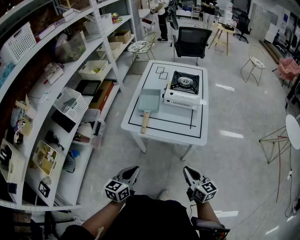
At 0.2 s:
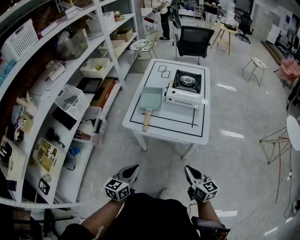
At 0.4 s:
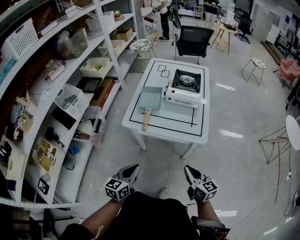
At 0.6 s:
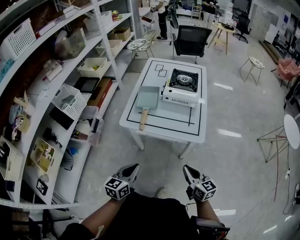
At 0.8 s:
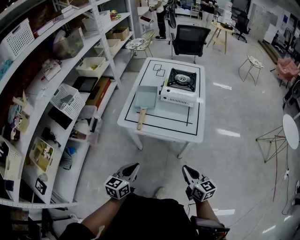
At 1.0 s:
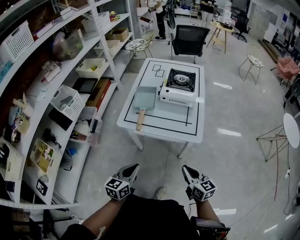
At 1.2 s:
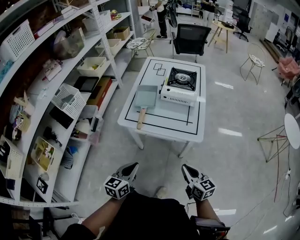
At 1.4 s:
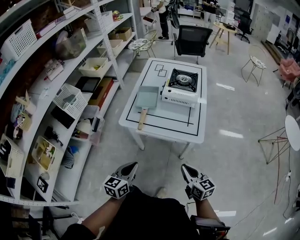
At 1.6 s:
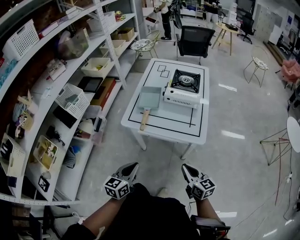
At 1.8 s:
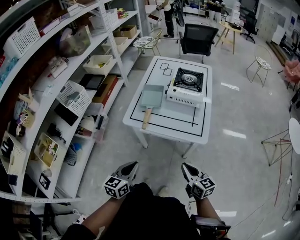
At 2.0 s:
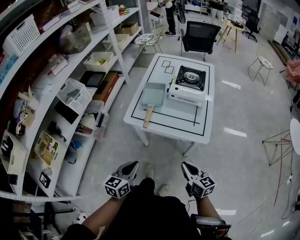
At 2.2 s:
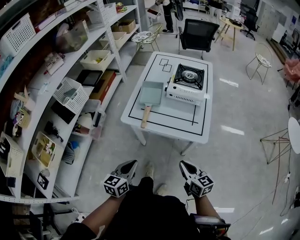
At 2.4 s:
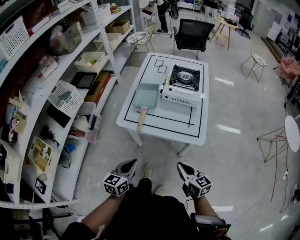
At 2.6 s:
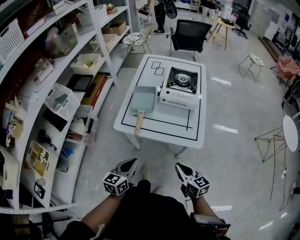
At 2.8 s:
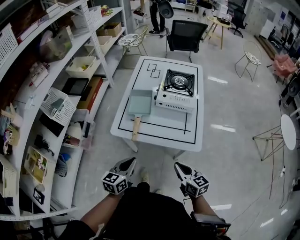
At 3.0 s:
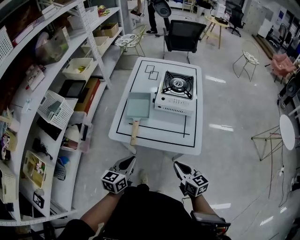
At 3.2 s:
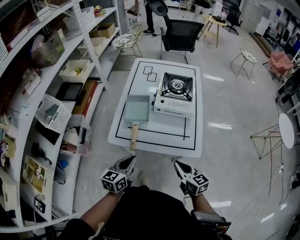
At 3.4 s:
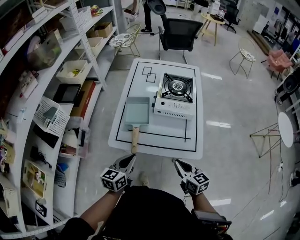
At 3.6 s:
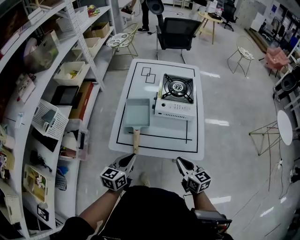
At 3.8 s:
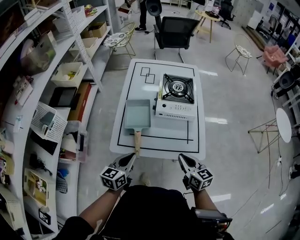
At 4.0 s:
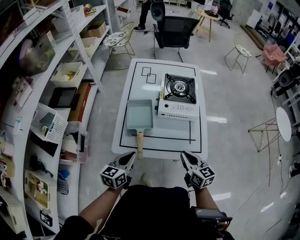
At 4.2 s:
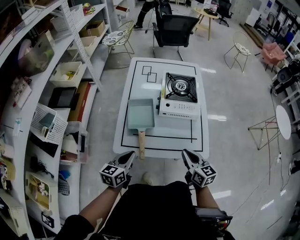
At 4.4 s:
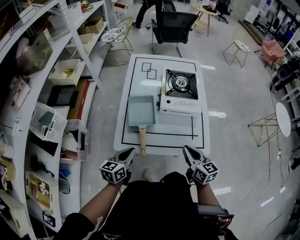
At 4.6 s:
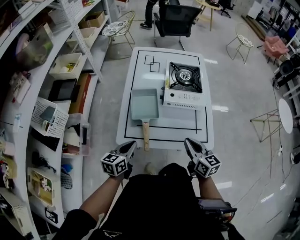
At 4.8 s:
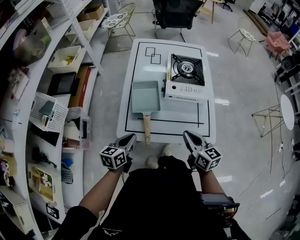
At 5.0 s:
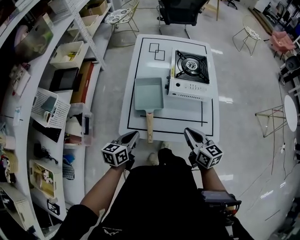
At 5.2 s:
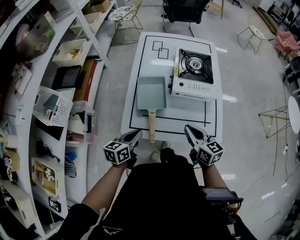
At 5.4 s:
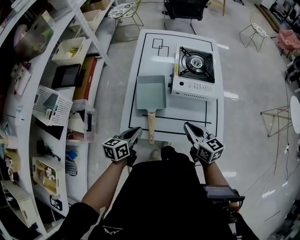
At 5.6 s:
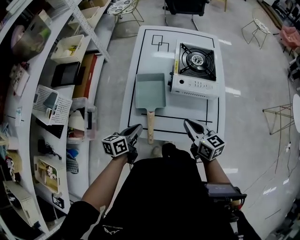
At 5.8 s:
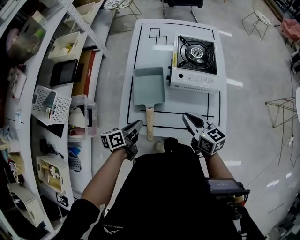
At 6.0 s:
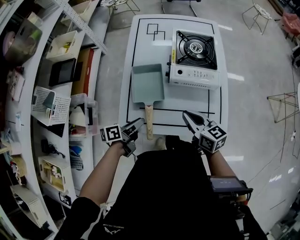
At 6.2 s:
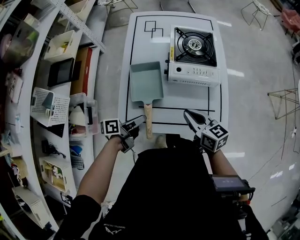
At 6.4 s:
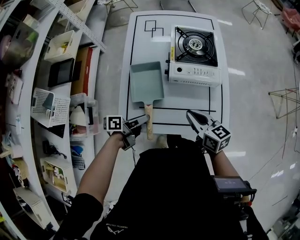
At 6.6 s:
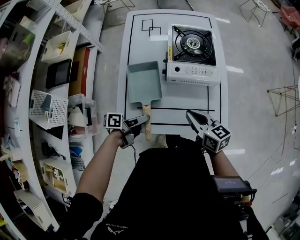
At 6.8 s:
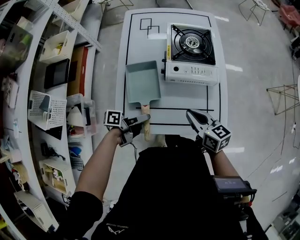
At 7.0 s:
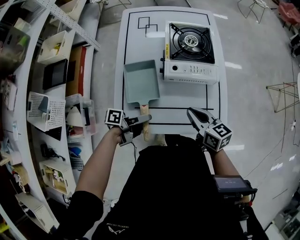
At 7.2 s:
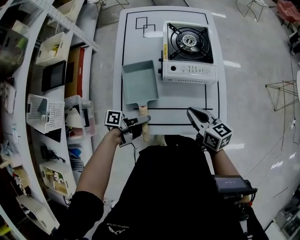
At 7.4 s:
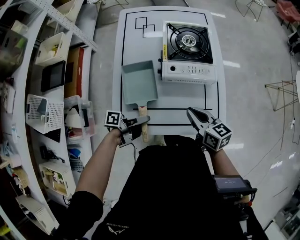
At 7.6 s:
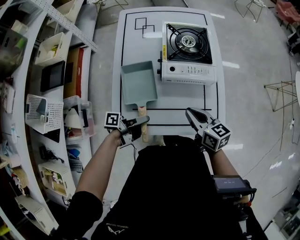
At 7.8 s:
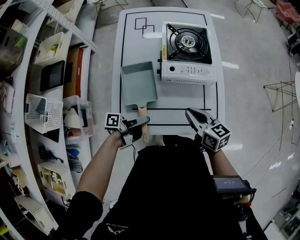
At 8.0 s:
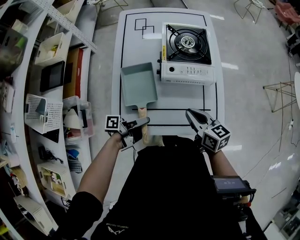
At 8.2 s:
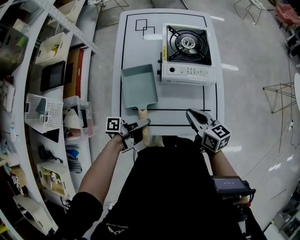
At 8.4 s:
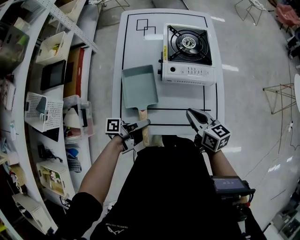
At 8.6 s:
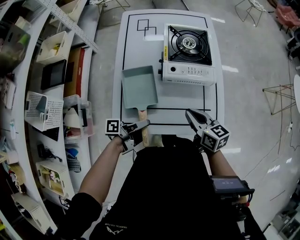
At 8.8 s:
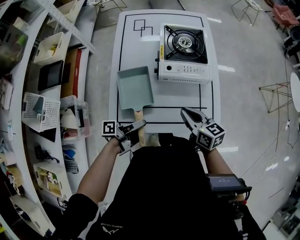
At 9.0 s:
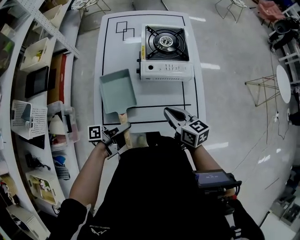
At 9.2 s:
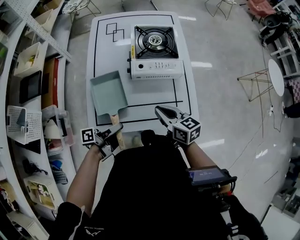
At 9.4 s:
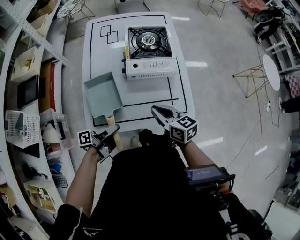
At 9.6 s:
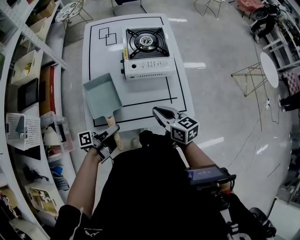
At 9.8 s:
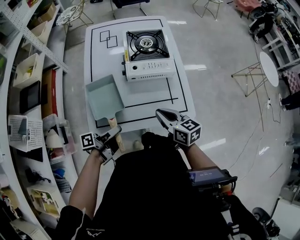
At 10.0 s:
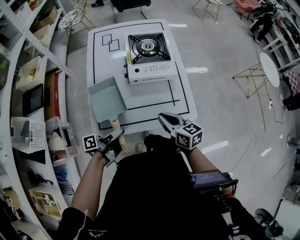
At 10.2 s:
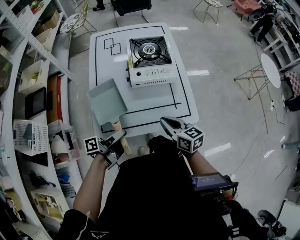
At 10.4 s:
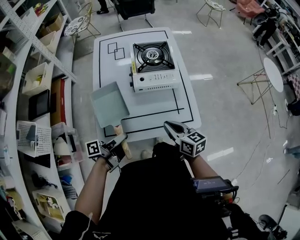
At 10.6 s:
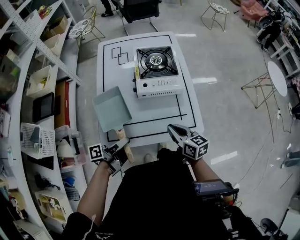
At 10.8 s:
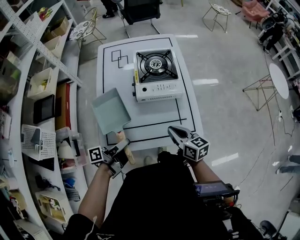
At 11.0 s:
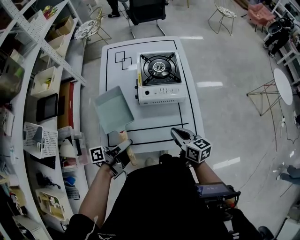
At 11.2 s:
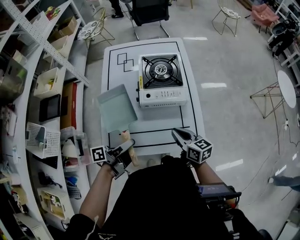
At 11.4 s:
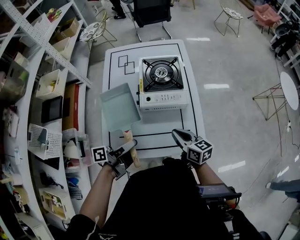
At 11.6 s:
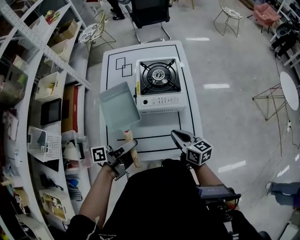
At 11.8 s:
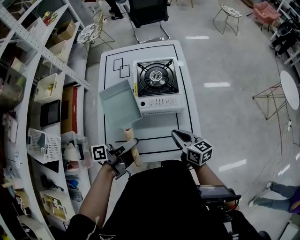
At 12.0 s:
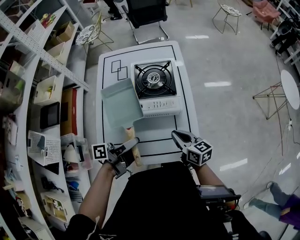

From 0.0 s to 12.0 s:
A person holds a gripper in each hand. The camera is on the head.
From 0.0 s to 1.6 s: The grippers move only a little.
From 1.6 s to 3.0 s: Both grippers travel together forward, some 10 cm.
From 3.0 s to 4.4 s: The left gripper goes some 15 cm forward and to the left. The right gripper heads forward, covering roughly 10 cm.
From 4.4 s to 6.0 s: The right gripper moves forward, roughly 10 cm. Meanwhile the left gripper heads downward and forward, covering some 10 cm, turns by some 40 degrees, and opens up.
From 6.0 s to 7.6 s: The left gripper is displaced to the right by some 5 cm, and swivels about 30 degrees.
From 7.6 s to 9.0 s: There are only small adjustments of the grippers.
From 9.0 s to 10.4 s: The right gripper moves about 5 cm.
From 10.4 s to 12.0 s: The left gripper moves forward, to the right and upward, some 15 cm. Meanwhile the right gripper shifts roughly 15 cm forward and to the right.

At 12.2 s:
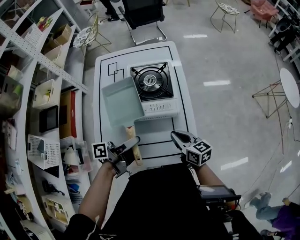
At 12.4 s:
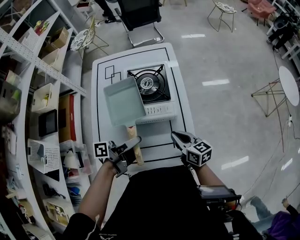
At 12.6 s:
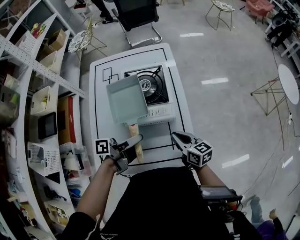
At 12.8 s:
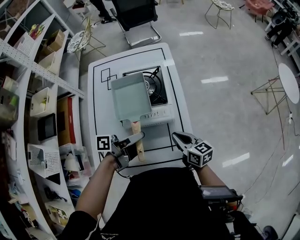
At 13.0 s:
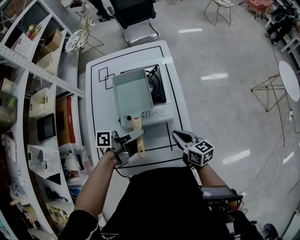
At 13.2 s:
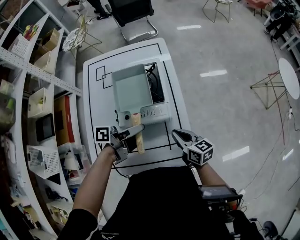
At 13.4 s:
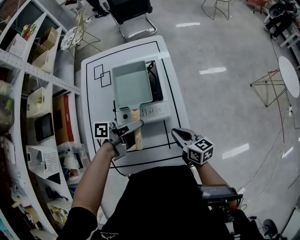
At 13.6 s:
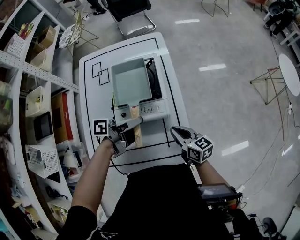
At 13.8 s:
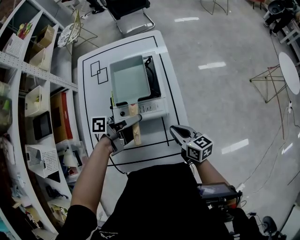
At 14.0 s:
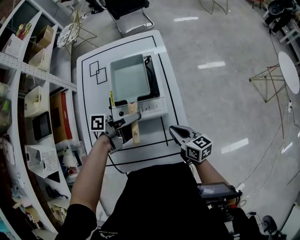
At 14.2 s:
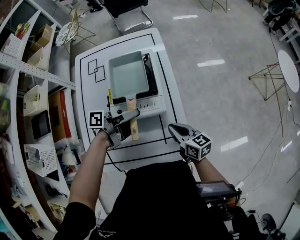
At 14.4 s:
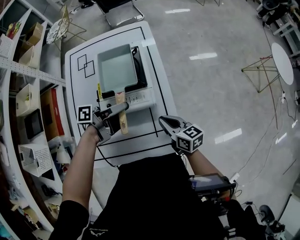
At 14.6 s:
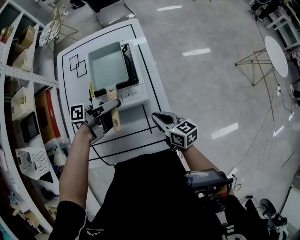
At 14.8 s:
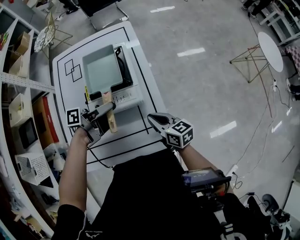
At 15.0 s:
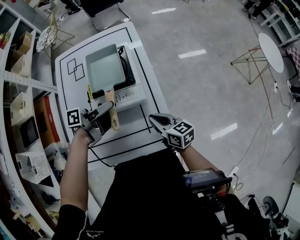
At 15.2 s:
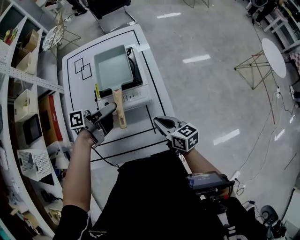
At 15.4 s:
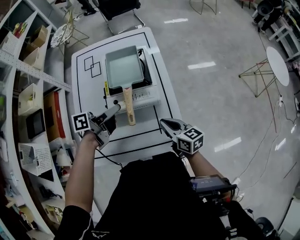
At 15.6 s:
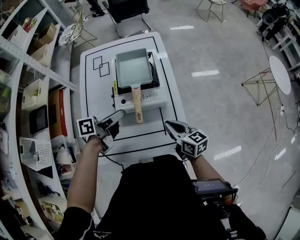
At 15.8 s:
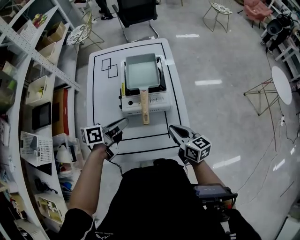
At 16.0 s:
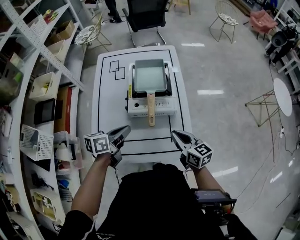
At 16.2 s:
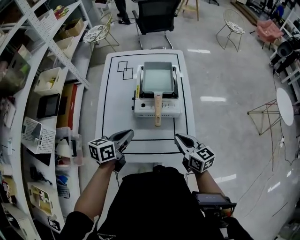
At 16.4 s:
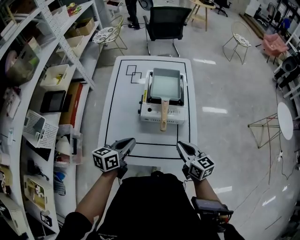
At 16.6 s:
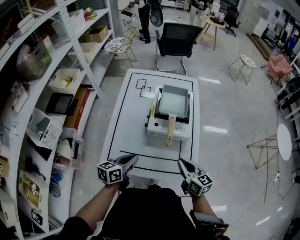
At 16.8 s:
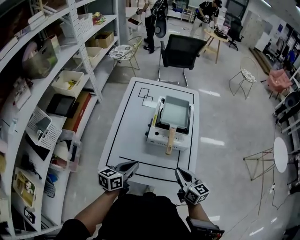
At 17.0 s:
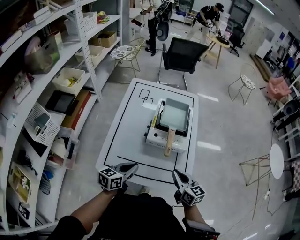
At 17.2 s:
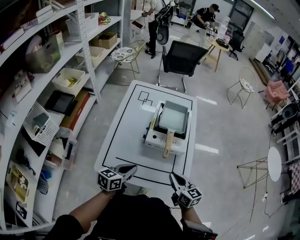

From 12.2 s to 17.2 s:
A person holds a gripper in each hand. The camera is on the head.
From 12.2 s to 13.8 s: The left gripper is displaced forward and to the right by about 15 cm. The right gripper moves about 5 cm.
From 13.8 s to 15.6 s: The left gripper travels to the left and backward by approximately 10 cm, while the right gripper changes place by roughly 5 cm.
From 15.6 s to 17.2 s: The right gripper goes some 5 cm backward, while the left gripper goes approximately 15 cm backward and to the left, rotates some 40 degrees, and closes up.

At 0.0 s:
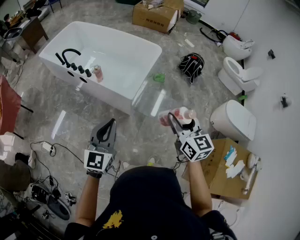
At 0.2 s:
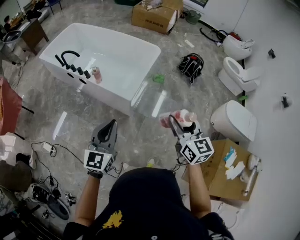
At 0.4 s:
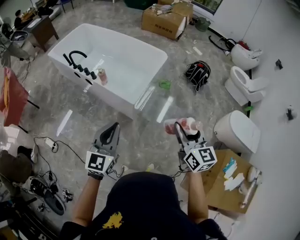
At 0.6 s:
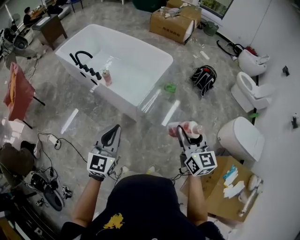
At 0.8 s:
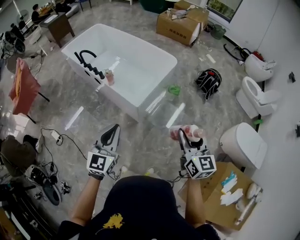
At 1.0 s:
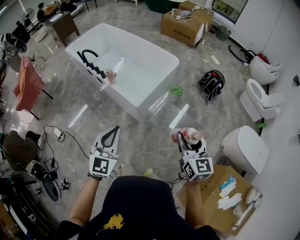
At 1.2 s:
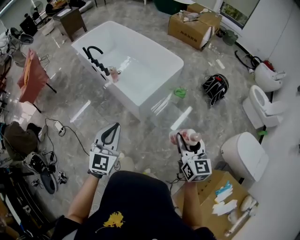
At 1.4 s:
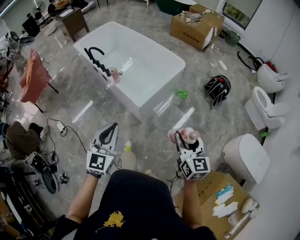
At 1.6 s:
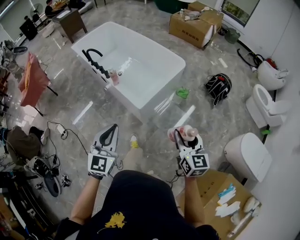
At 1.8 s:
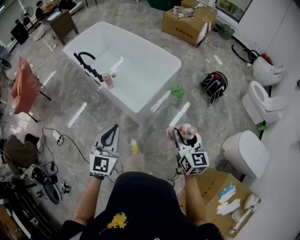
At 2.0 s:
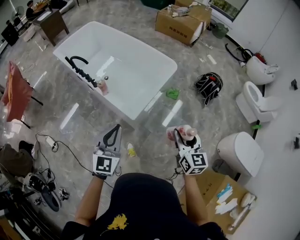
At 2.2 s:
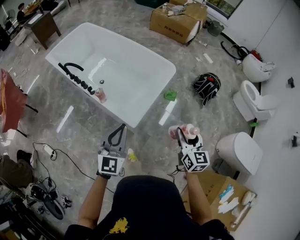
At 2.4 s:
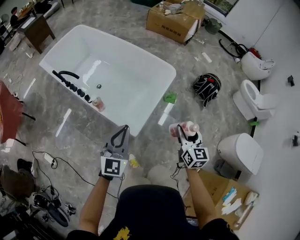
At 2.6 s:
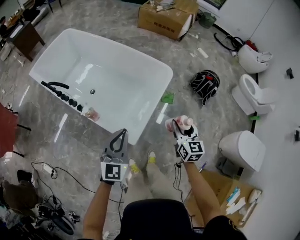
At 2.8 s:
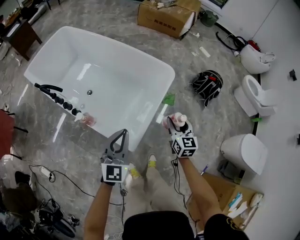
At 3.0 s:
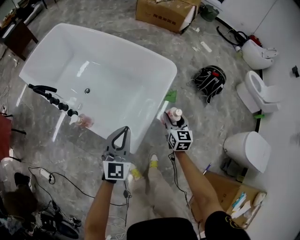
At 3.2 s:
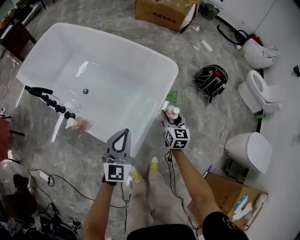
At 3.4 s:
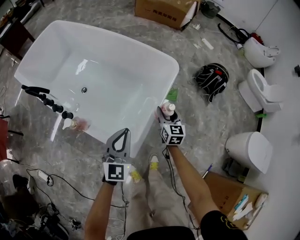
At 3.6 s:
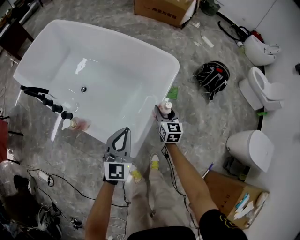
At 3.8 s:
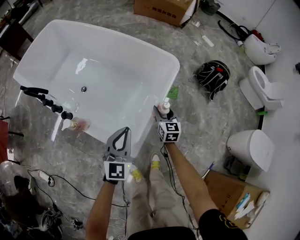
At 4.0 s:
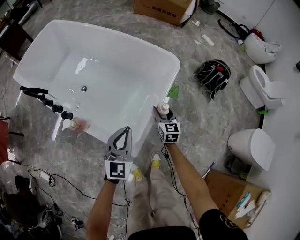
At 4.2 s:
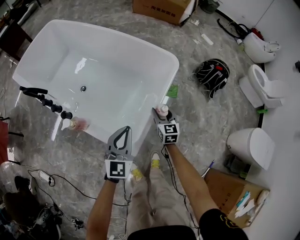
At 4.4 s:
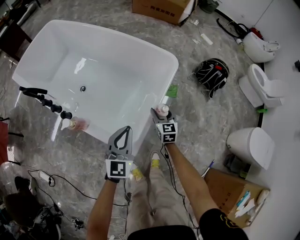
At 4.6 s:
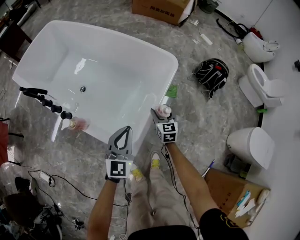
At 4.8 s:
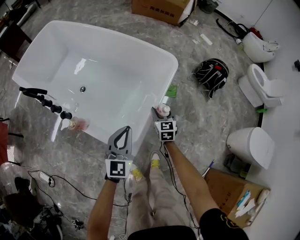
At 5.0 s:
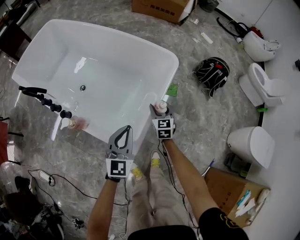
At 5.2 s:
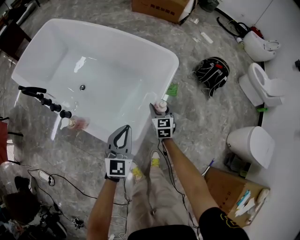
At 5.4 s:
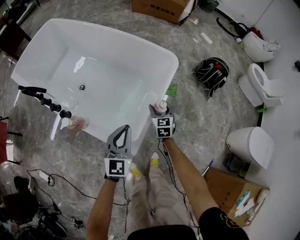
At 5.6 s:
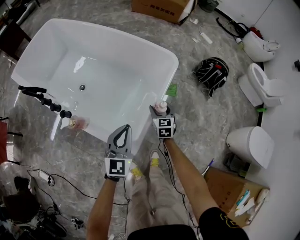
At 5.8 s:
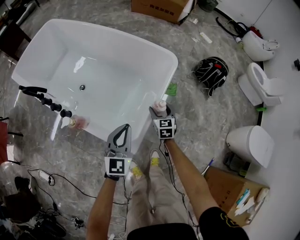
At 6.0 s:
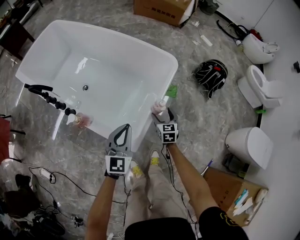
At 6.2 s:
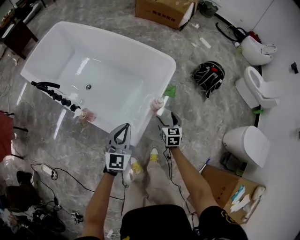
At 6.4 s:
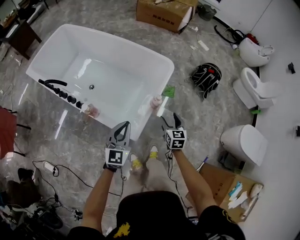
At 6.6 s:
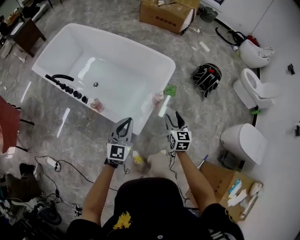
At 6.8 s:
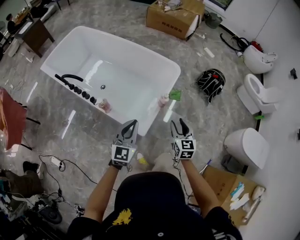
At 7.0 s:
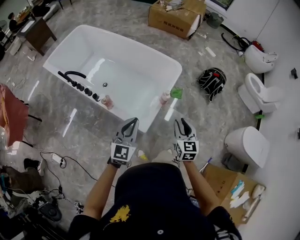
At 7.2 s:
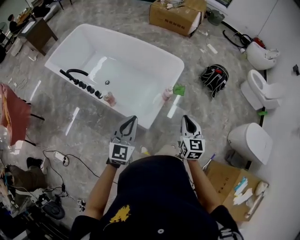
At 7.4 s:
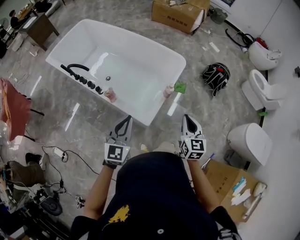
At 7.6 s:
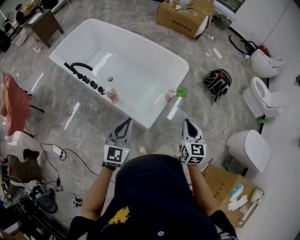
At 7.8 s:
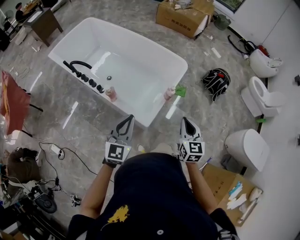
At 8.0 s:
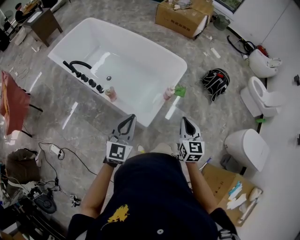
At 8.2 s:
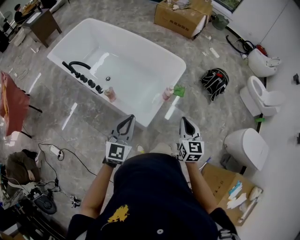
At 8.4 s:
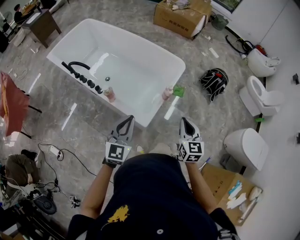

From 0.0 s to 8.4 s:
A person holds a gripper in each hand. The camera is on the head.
From 0.0 s to 1.4 s: Both grippers move to the right, approximately 15 cm.
From 1.4 s to 2.8 s: Both grippers are carried forward, approximately 50 cm. The right gripper shifts roughly 25 cm downward.
From 2.8 s to 4.2 s: Both grippers travel together downward and forward, approximately 20 cm.
From 4.2 s to 5.6 s: The grippers move only a little.
From 5.6 s to 7.0 s: The left gripper travels upward and backward by approximately 25 cm. Meanwhile the right gripper shifts about 40 cm upward and backward, and closes.
From 7.0 s to 8.4 s: The grippers stay close to where they were, moving slightly.
